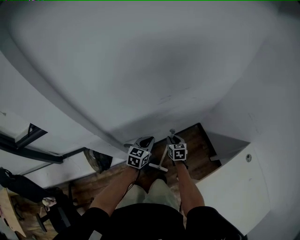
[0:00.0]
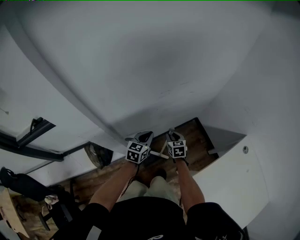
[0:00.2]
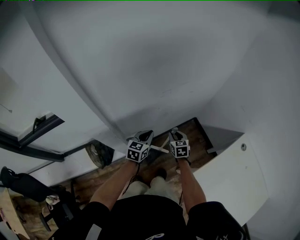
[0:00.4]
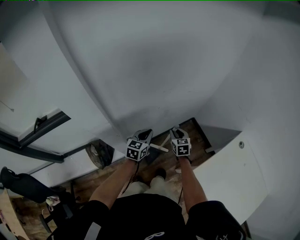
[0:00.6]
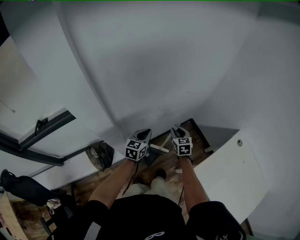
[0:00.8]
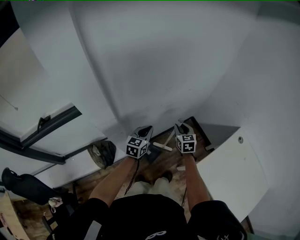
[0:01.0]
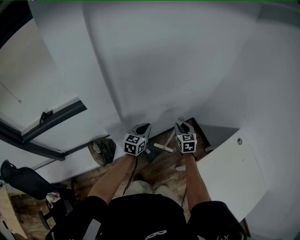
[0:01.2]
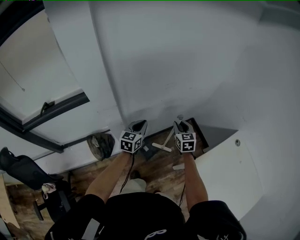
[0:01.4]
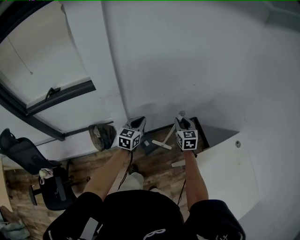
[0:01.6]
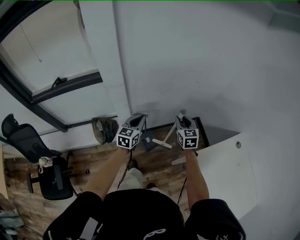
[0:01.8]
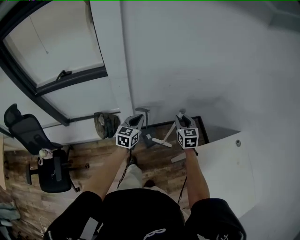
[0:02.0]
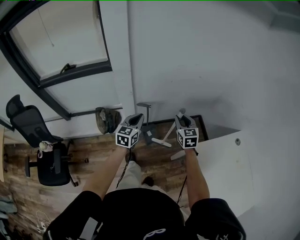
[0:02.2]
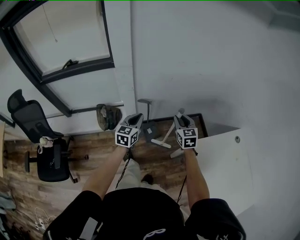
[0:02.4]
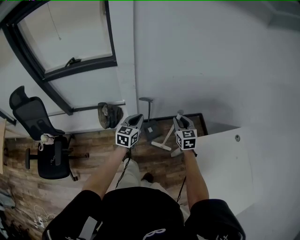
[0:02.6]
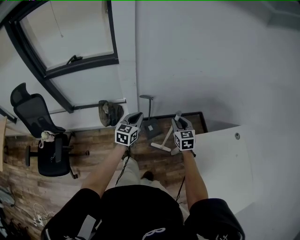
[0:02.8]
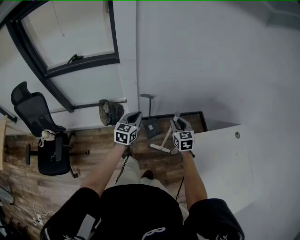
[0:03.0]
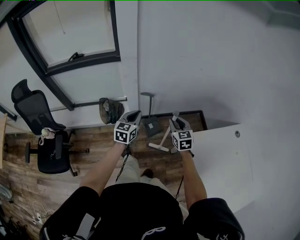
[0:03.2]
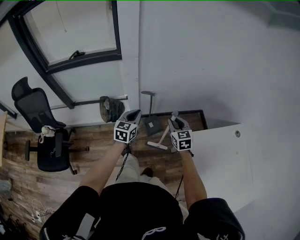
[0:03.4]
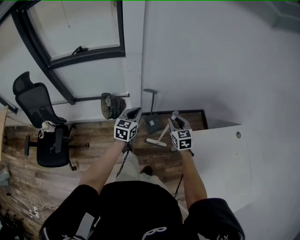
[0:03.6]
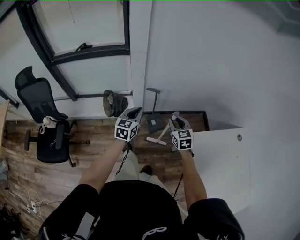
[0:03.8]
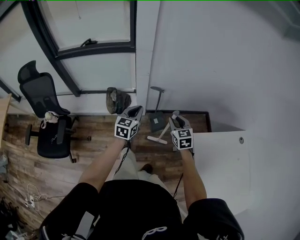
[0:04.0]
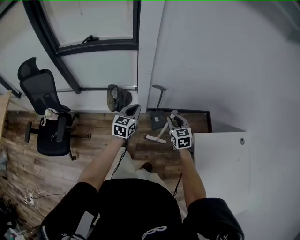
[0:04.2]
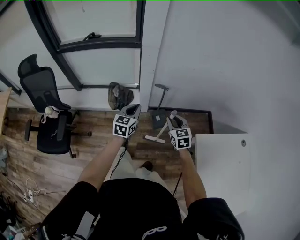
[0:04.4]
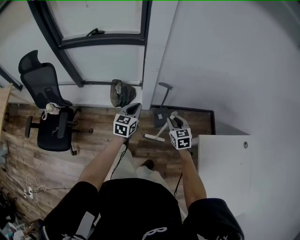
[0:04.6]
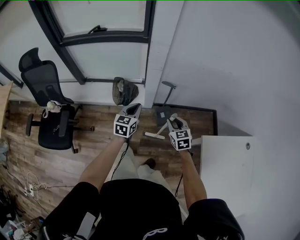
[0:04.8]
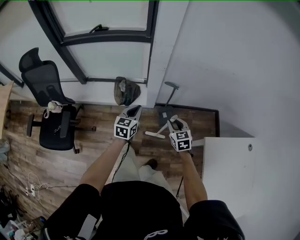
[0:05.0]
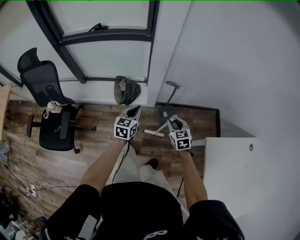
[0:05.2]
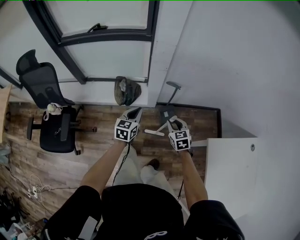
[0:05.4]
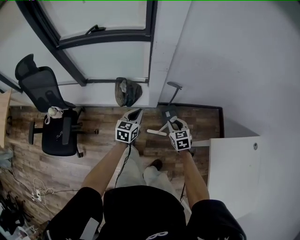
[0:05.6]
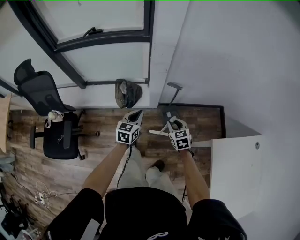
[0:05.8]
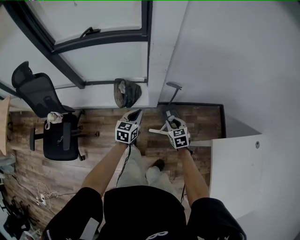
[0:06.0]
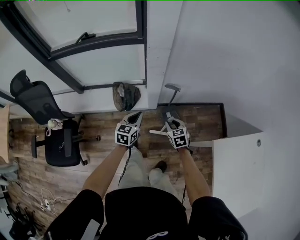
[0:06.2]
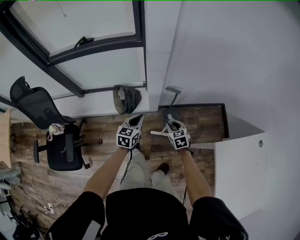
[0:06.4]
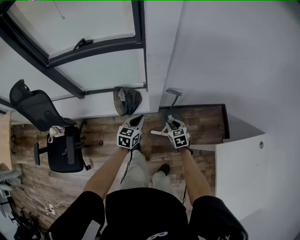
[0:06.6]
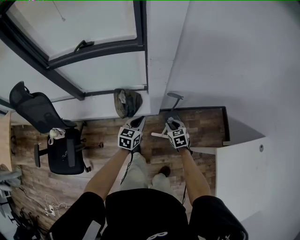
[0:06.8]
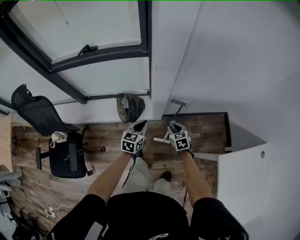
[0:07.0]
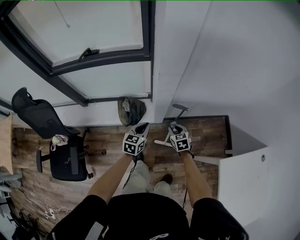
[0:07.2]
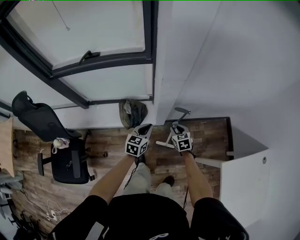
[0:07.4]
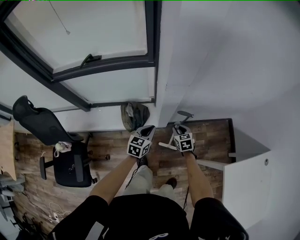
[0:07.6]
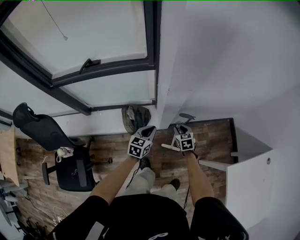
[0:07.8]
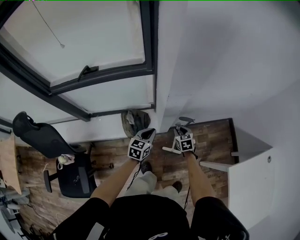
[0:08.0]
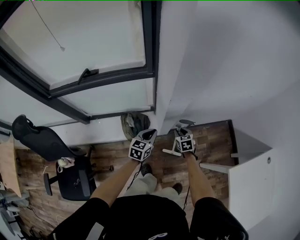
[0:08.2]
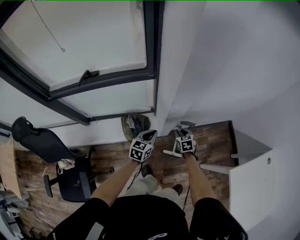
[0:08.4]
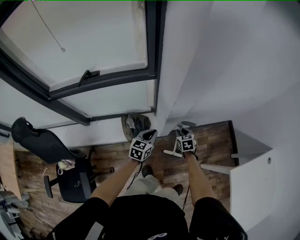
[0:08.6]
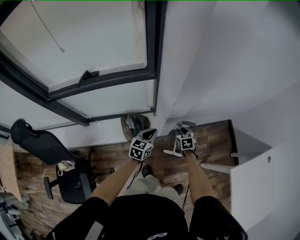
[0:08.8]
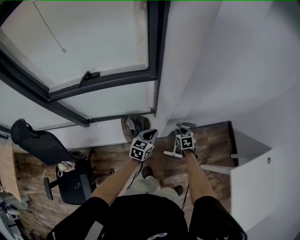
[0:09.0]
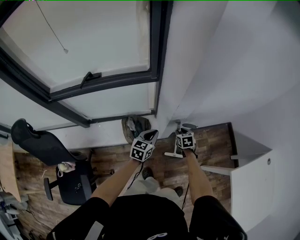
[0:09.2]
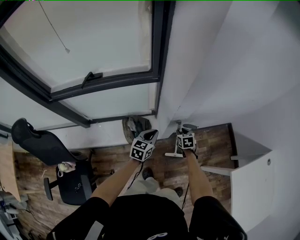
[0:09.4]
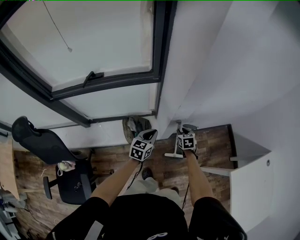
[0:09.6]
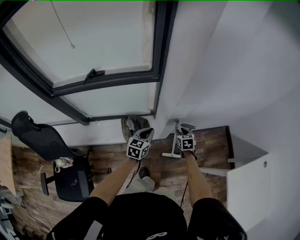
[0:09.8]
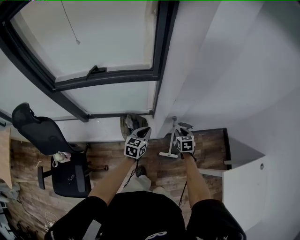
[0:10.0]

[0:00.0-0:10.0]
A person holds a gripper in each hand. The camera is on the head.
0:00.0 to 0:01.4: The left gripper heads upward, backward and to the left, covering roughly 20 cm; the right gripper travels upward and backward by roughly 25 cm.
0:01.4 to 0:02.8: The two grippers go some 25 cm backward.
0:02.8 to 0:04.2: Both grippers move to the left, approximately 10 cm.
0:04.2 to 0:05.8: Both grippers travel together downward, to the left and forward, roughly 15 cm.
0:05.8 to 0:07.2: The grippers both shift forward by about 15 cm.
0:07.2 to 0:08.6: Both grippers move forward, about 10 cm.
0:08.6 to 0:10.0: The right gripper travels upward by roughly 5 cm; the left gripper ends up approximately 5 cm from where it was.

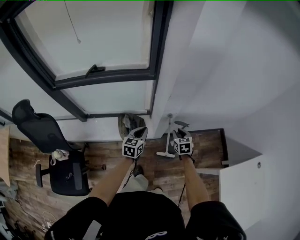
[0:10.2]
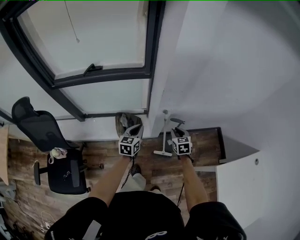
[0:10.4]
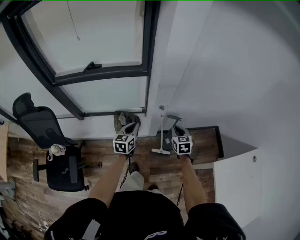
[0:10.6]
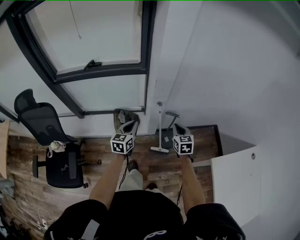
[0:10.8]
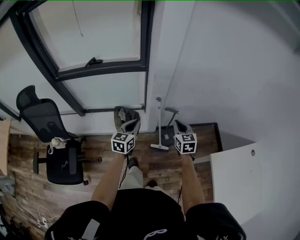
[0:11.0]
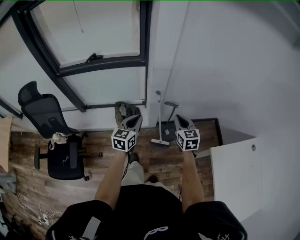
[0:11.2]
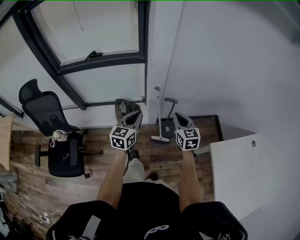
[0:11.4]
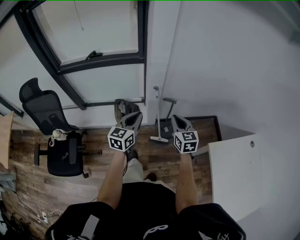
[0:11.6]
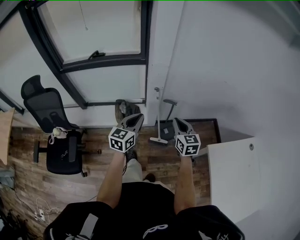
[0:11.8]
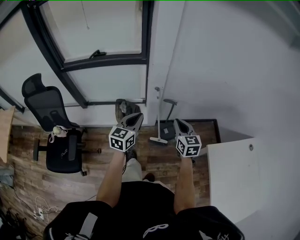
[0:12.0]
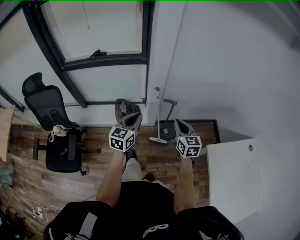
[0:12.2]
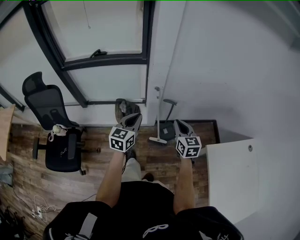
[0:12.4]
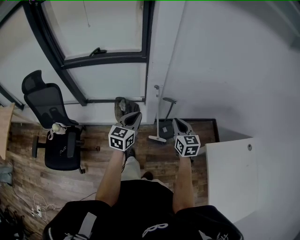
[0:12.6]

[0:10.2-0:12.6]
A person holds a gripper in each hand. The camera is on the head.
0:10.2 to 0:11.4: The right gripper shifts some 25 cm upward and backward, swivels about 20 degrees, and closes. The left gripper travels backward, upward and to the right by about 25 cm.
0:11.4 to 0:12.6: The right gripper heads backward, covering roughly 5 cm.

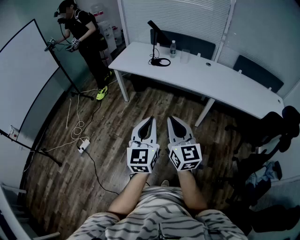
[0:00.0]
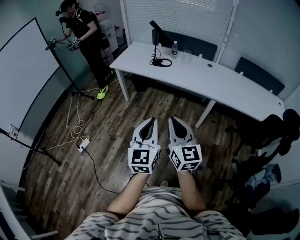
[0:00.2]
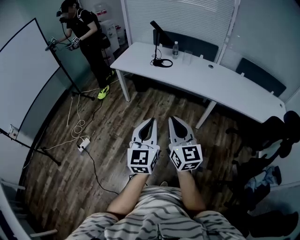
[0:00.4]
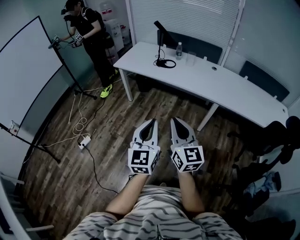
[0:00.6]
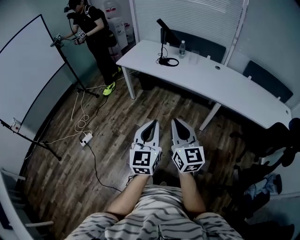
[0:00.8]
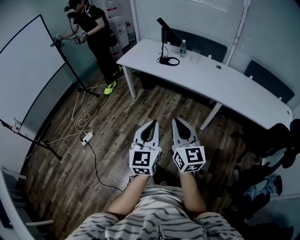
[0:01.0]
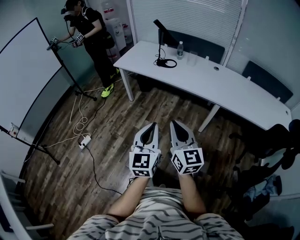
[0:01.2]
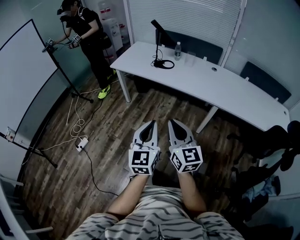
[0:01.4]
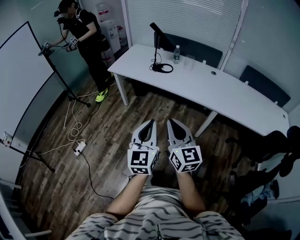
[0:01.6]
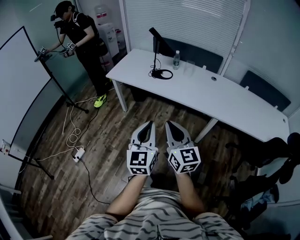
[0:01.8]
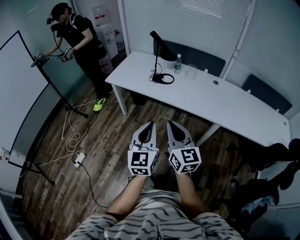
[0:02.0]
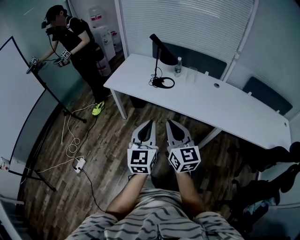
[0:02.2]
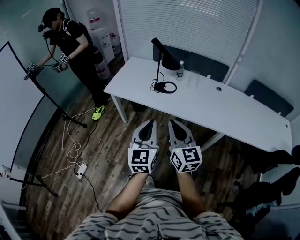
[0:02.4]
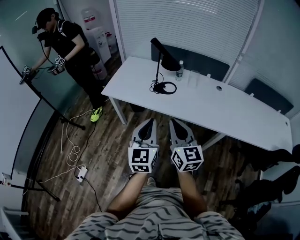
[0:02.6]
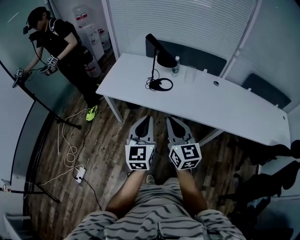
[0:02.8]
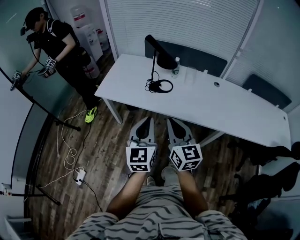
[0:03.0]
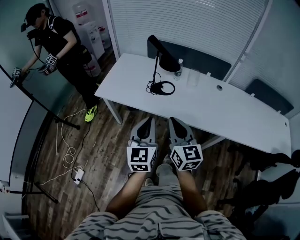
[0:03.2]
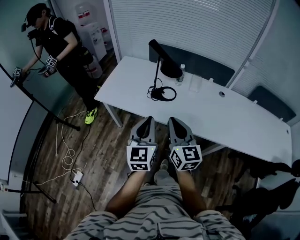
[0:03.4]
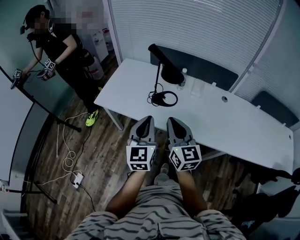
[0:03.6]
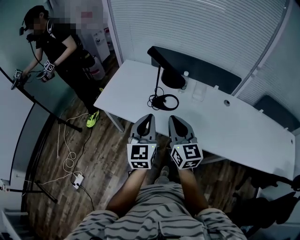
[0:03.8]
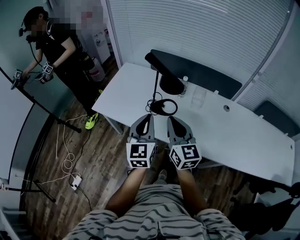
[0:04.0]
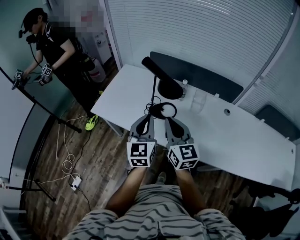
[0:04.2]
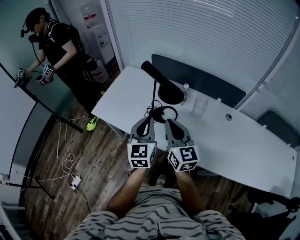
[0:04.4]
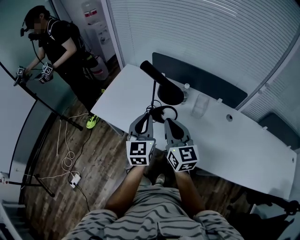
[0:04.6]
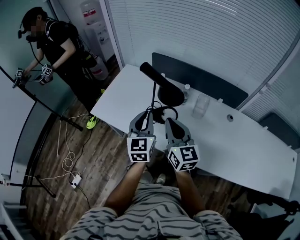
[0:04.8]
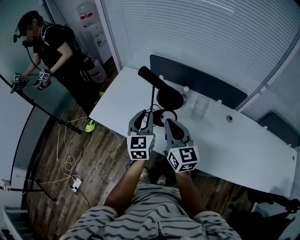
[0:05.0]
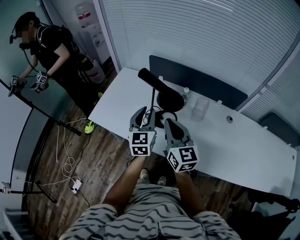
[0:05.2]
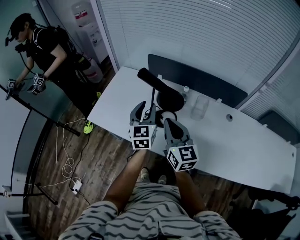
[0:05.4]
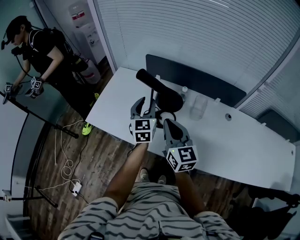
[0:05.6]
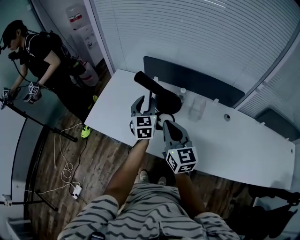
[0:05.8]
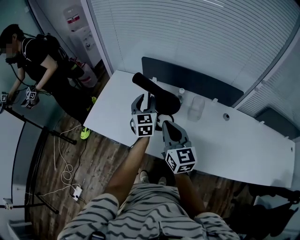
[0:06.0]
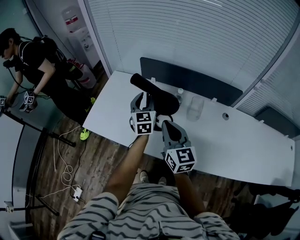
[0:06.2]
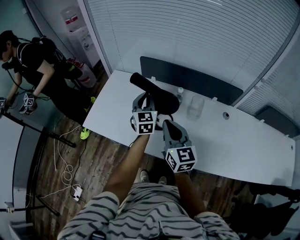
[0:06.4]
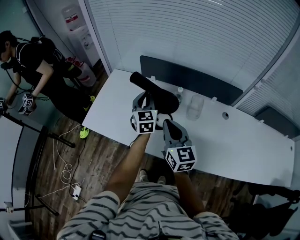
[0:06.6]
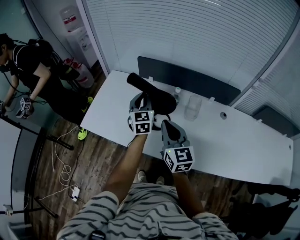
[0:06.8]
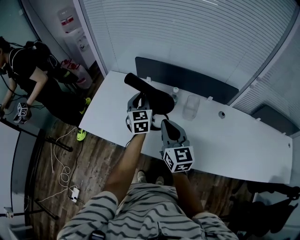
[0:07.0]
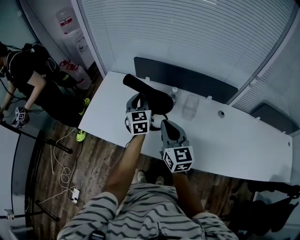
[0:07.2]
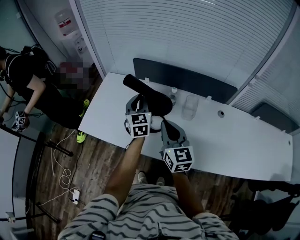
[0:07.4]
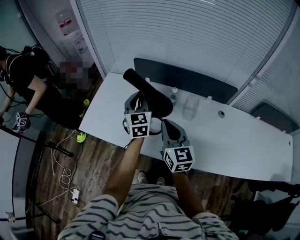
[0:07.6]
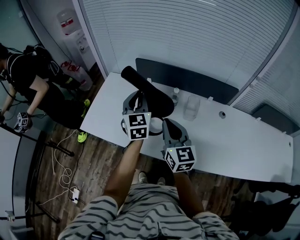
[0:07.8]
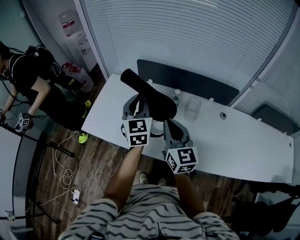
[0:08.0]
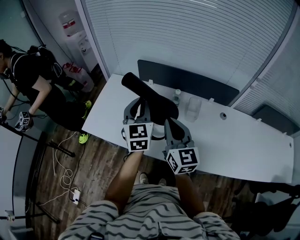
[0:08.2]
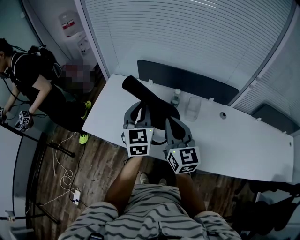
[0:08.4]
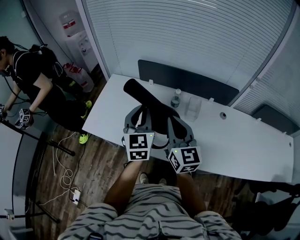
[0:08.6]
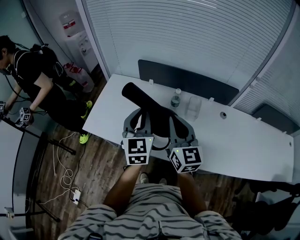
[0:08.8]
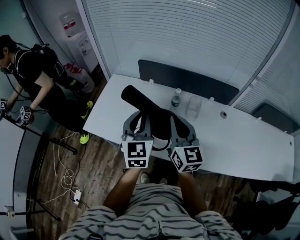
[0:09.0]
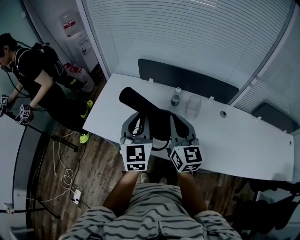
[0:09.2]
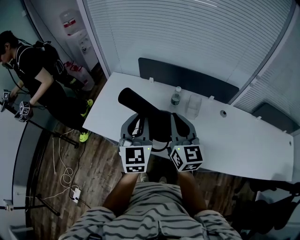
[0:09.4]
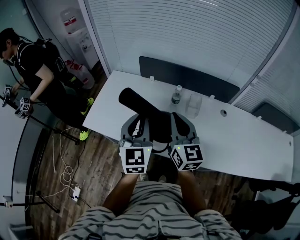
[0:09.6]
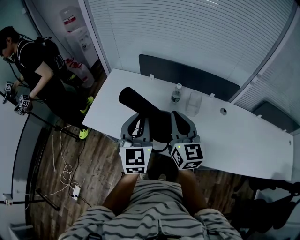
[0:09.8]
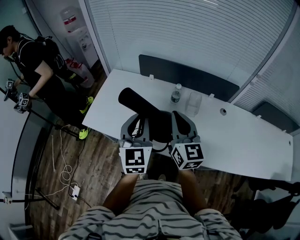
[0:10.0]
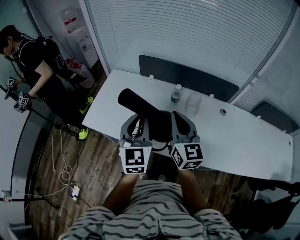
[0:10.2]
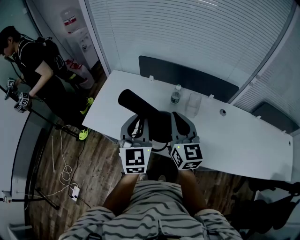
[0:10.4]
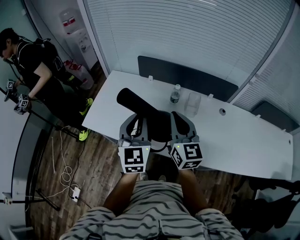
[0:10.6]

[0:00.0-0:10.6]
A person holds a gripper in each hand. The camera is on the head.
0:00.0 to 0:01.6: The two grippers go some 10 cm forward.
0:01.6 to 0:03.0: Both grippers move forward, roughly 35 cm.
0:03.0 to 0:04.6: The grippers both shift forward by about 30 cm.
0:04.6 to 0:06.0: The right gripper moves forward, approximately 5 cm. Meanwhile the left gripper moves forward, about 20 cm, and opens up.
0:06.0 to 0:07.6: The grippers move only a little.
0:07.6 to 0:09.0: The left gripper moves backward and upward, about 15 cm; the right gripper goes about 5 cm upward.
0:09.0 to 0:10.6: The grippers make only small movements.

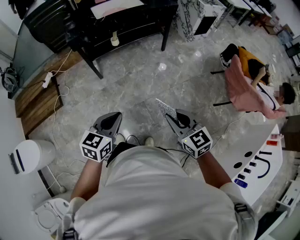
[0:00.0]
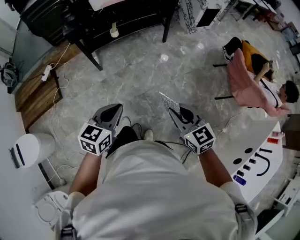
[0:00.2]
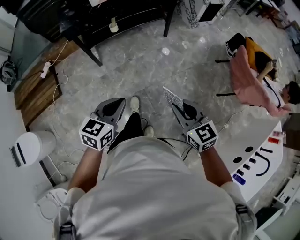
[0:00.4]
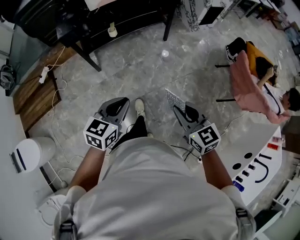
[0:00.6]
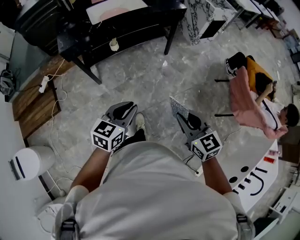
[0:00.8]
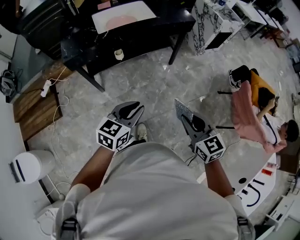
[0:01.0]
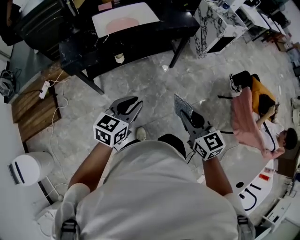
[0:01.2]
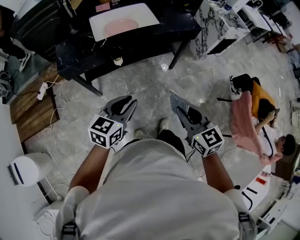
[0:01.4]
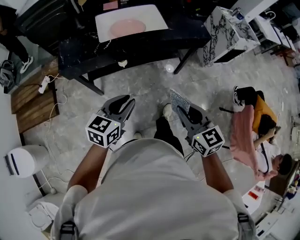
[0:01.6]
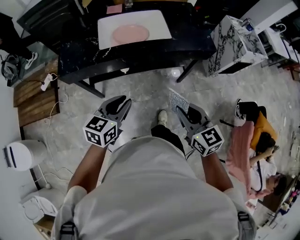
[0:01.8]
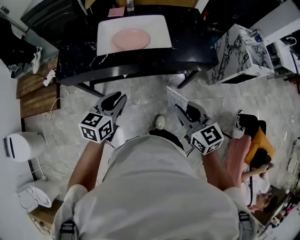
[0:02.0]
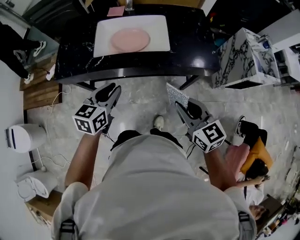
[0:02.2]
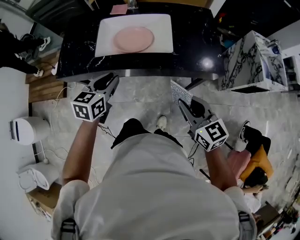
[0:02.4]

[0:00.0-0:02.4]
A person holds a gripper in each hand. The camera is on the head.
0:00.0 to 0:01.2: Both grippers travel together forward, roughly 35 cm. The left gripper opens.
0:01.2 to 0:02.4: The right gripper moves about 40 cm, and swivels approximately 30 degrees. Meanwhile the left gripper shifts by approximately 35 cm, and changes its angle by roughly 40 degrees.
